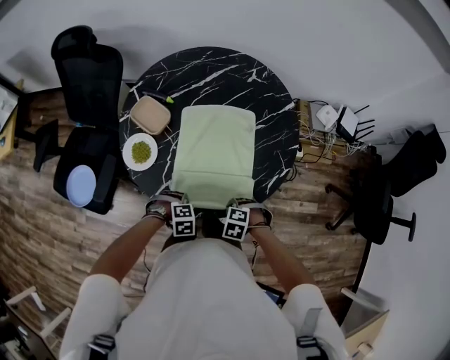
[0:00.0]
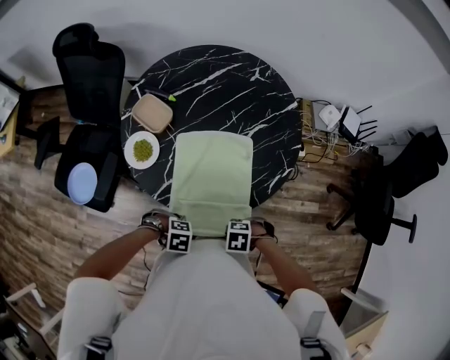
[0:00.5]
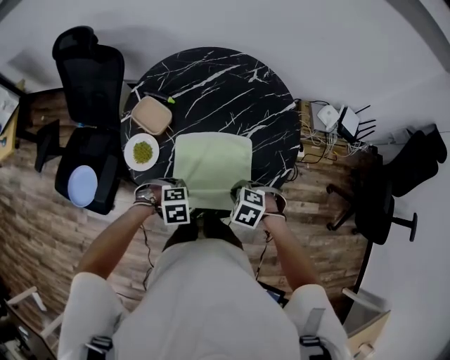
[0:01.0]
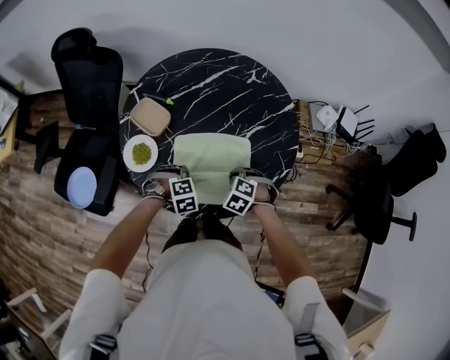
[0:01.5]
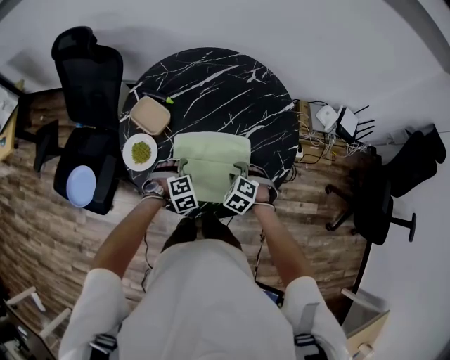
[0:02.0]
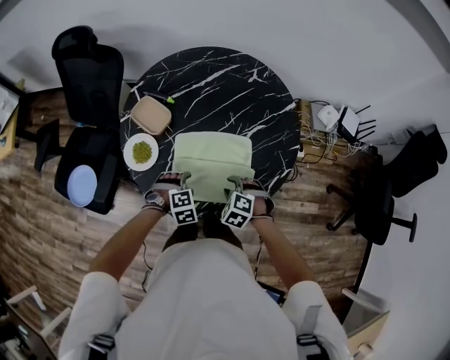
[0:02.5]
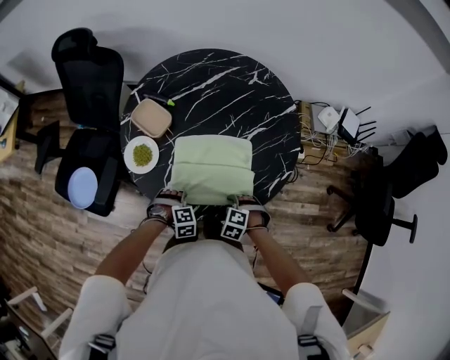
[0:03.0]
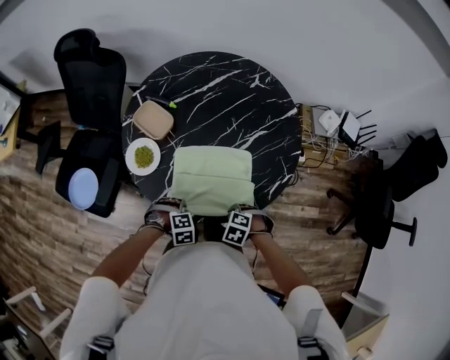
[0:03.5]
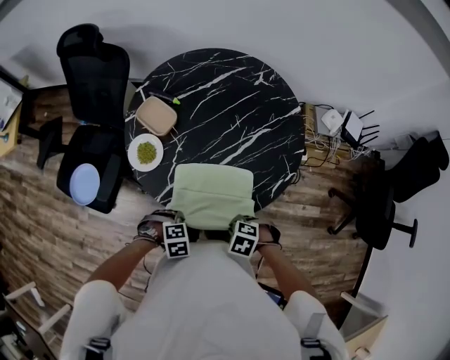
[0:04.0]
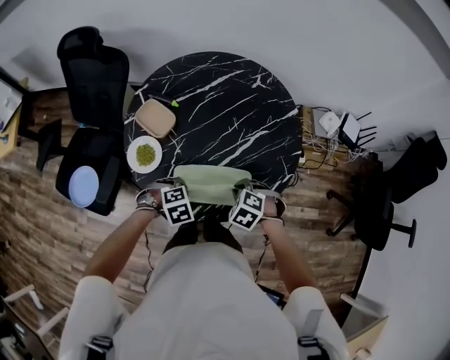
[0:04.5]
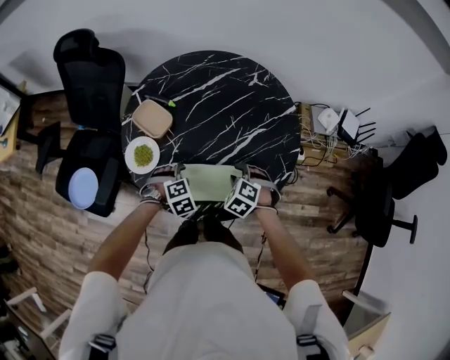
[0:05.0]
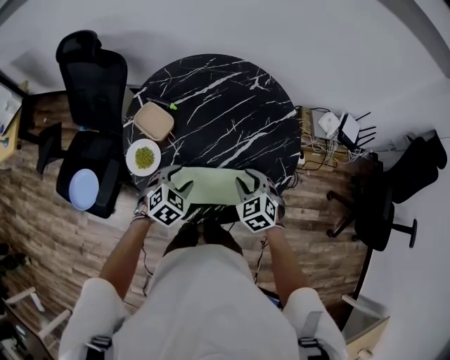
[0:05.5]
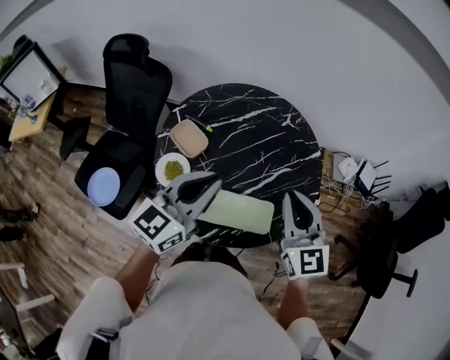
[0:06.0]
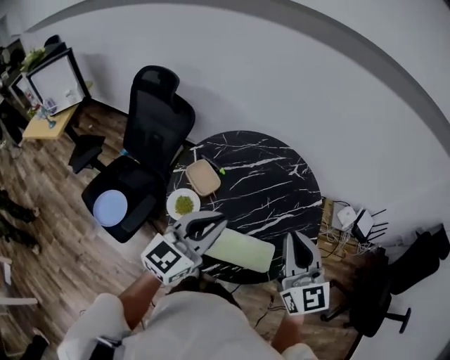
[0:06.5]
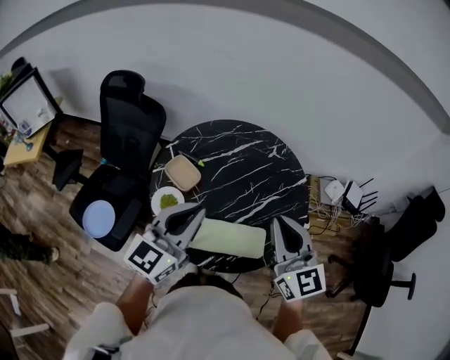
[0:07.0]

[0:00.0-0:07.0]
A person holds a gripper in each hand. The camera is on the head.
0:00.0 to 0:02.0: The left gripper shifts by roughly 15 cm, rotates approximately 20 degrees, and opens its fingers. The right gripper shifts by about 15 cm, and rotates roughly 20 degrees.
0:02.0 to 0:03.5: The left gripper shifts by approximately 15 cm, and closes its fingers. The right gripper ends up approximately 15 cm from where it was, and turns by approximately 20 degrees.
0:03.5 to 0:05.0: The left gripper changes place by approximately 15 cm, and opens up. The right gripper shifts by approximately 15 cm, and changes its angle by roughly 30 degrees.
0:05.0 to 0:07.0: The grippers both shift upward by approximately 35 cm. The left gripper angles its fingers upward, by some 70 degrees, and closes. Meanwhile the right gripper points its fingers about 60 degrees further upward, and closes up.

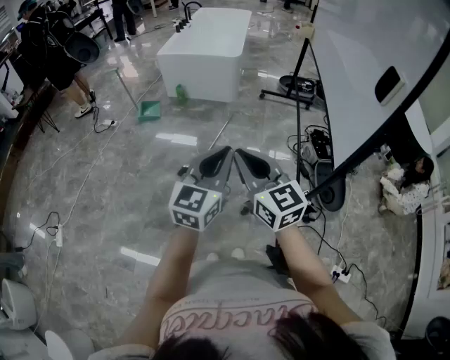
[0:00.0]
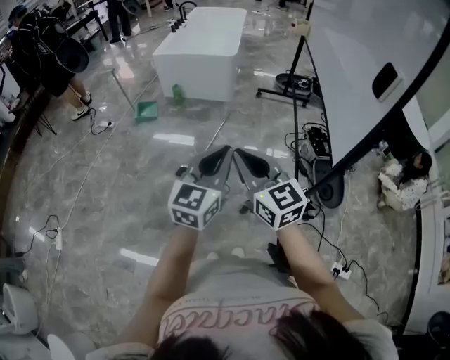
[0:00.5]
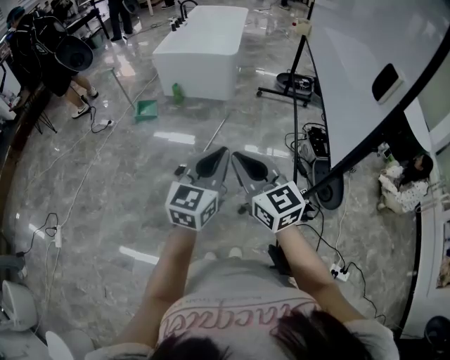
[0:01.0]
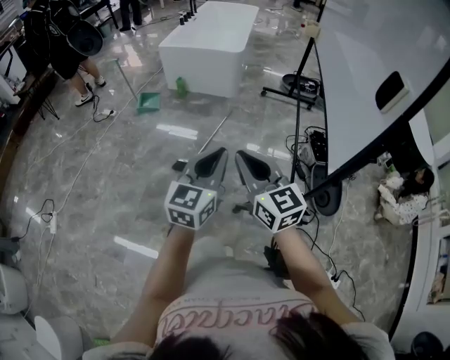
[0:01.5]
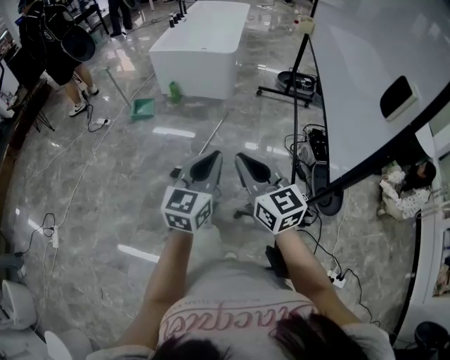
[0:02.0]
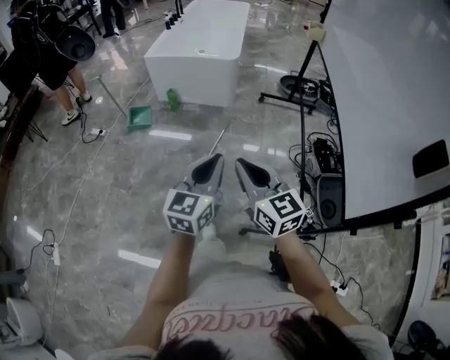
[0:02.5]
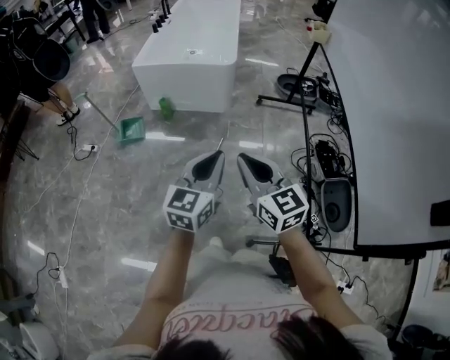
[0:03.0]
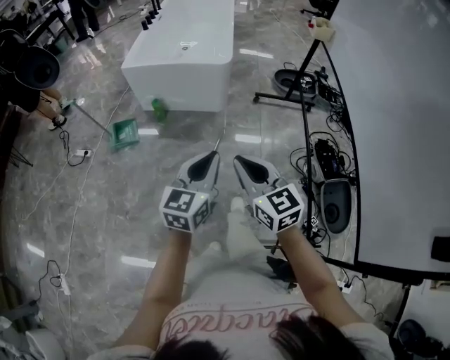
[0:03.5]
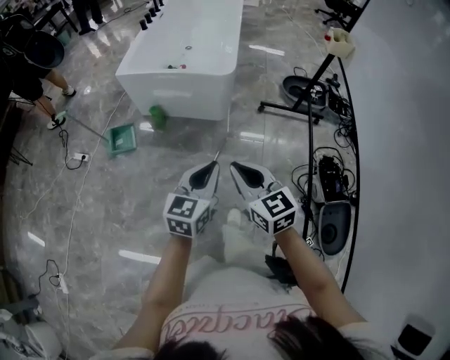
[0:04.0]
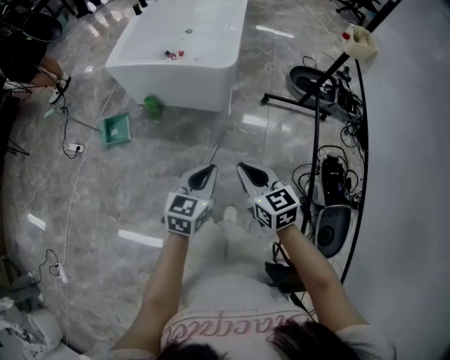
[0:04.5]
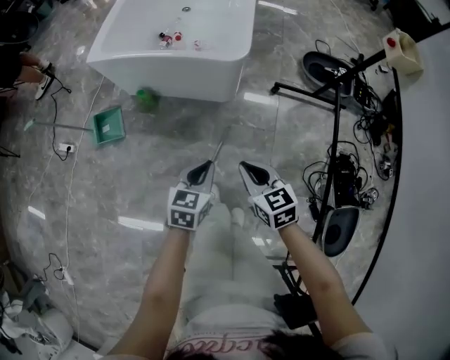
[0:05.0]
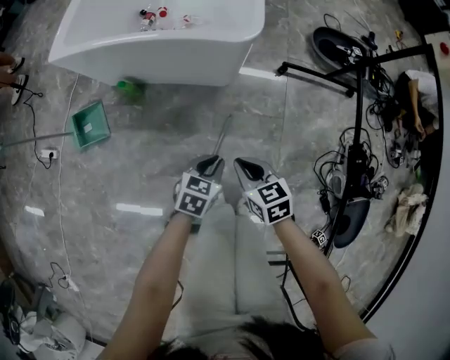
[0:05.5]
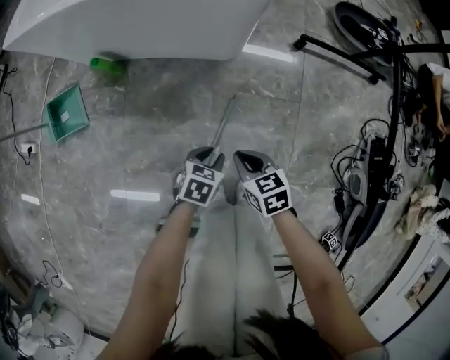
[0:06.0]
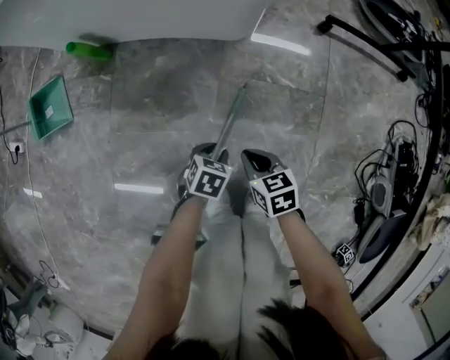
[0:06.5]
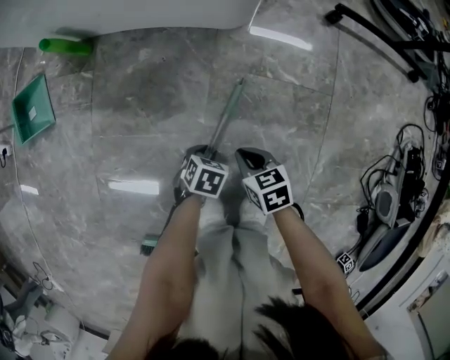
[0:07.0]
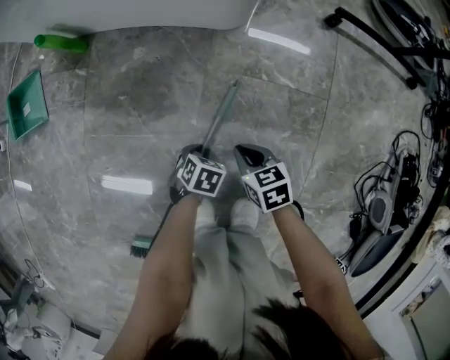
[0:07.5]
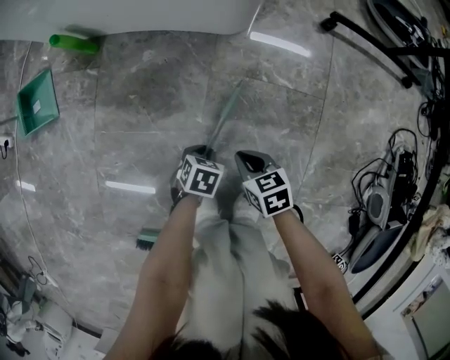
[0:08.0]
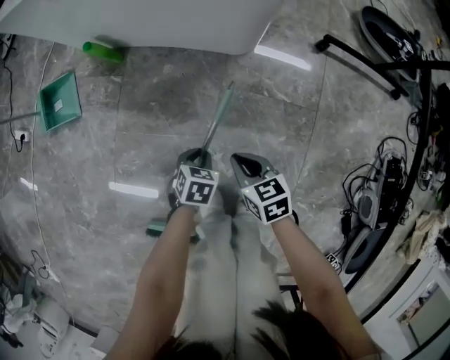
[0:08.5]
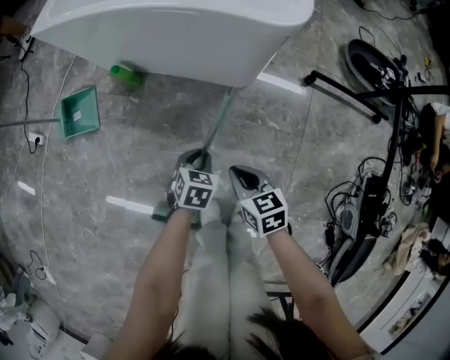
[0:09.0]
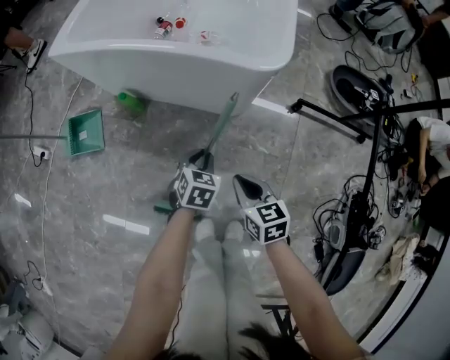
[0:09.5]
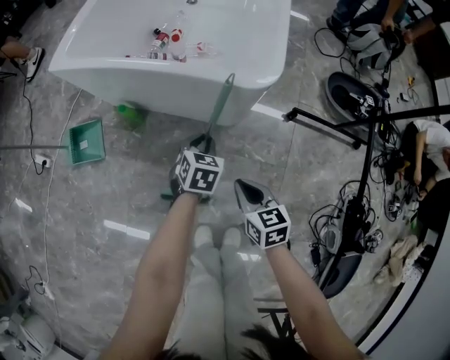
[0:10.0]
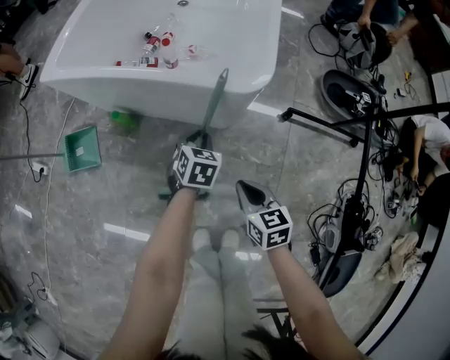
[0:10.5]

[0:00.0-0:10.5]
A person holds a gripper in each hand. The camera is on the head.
0:00.0 to 0:02.0: The right gripper shifts by some 5 cm. Meanwhile the left gripper moves forward, roughly 5 cm.
0:02.0 to 0:04.0: Both grippers are carried forward, approximately 40 cm.
0:04.0 to 0:06.5: Both grippers travel together downward, some 60 cm. The left gripper points its fingers some 50 degrees further downward, and opens; the right gripper angles its fingers downward, by about 30 degrees.
0:06.5 to 0:08.5: The left gripper reaches about 10 cm downward, then returns. Meanwhile the right gripper travels upward by some 5 cm.
0:08.5 to 0:10.5: The left gripper is displaced forward and upward by approximately 35 cm; the right gripper shifts some 20 cm upward and forward.

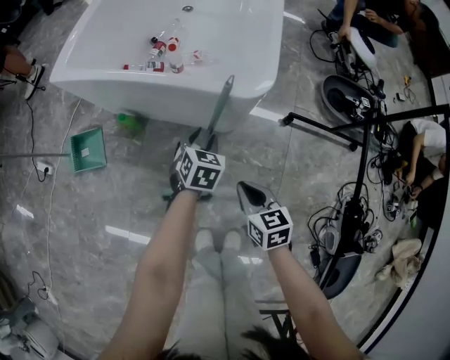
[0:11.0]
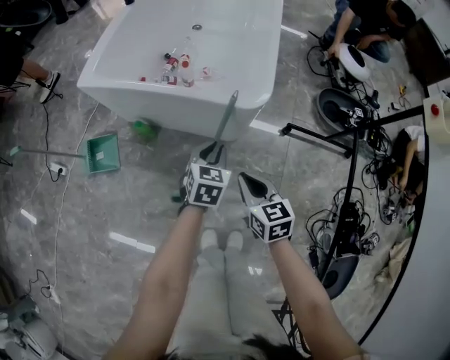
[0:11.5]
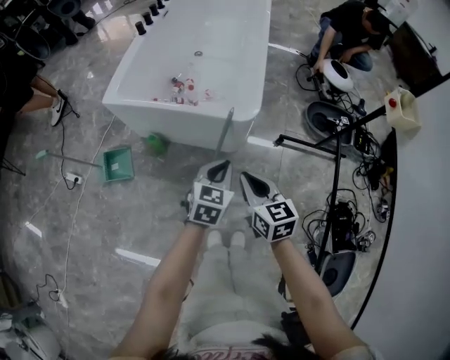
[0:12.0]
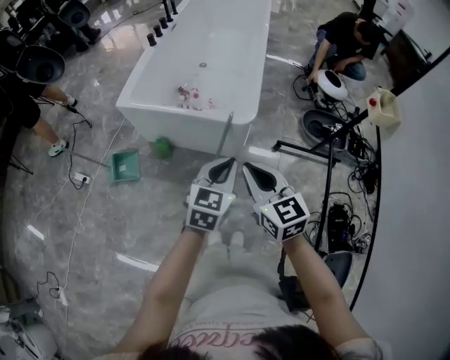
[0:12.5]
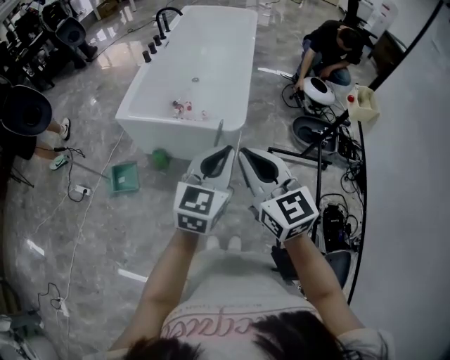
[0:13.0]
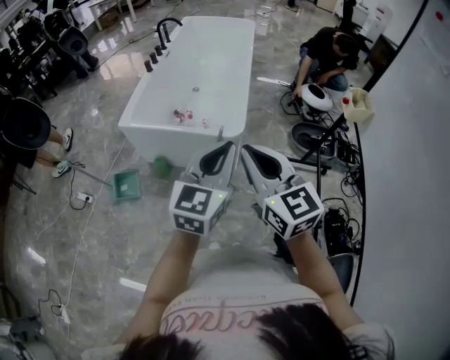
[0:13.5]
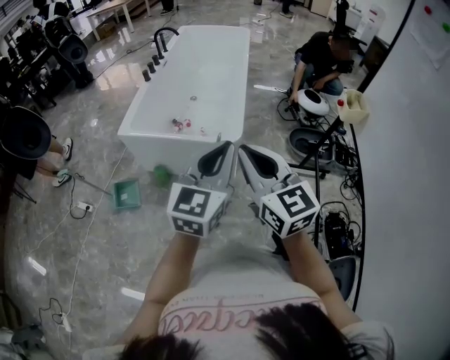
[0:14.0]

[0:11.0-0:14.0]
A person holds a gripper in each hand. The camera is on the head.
0:11.0 to 0:12.5: The right gripper moves upward, roughly 35 cm, and swivels some 30 degrees. The left gripper heads upward and backward, covering some 40 cm, changes its angle by about 30 degrees, and closes up.
0:12.5 to 0:14.0: The two grippers go approximately 15 cm upward. The left gripper rotates some 20 degrees.

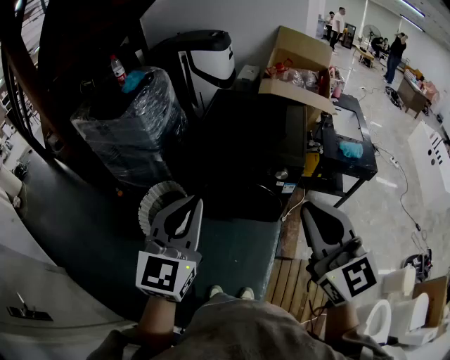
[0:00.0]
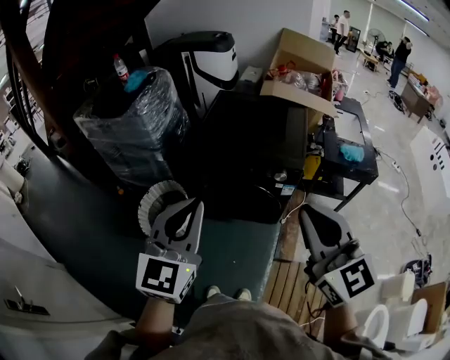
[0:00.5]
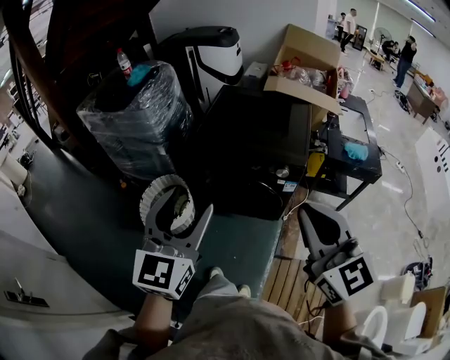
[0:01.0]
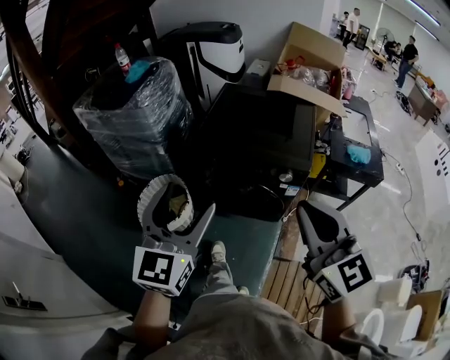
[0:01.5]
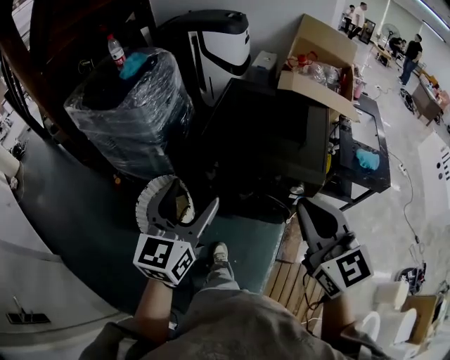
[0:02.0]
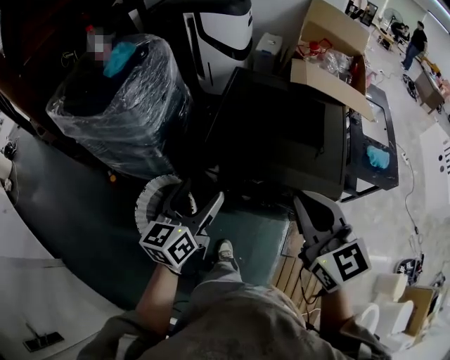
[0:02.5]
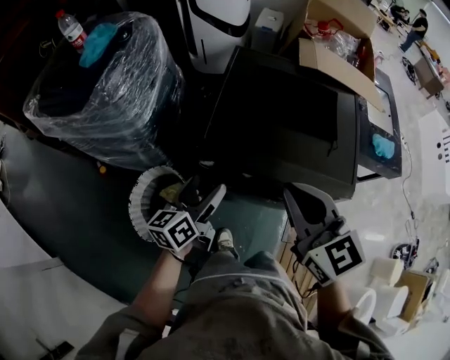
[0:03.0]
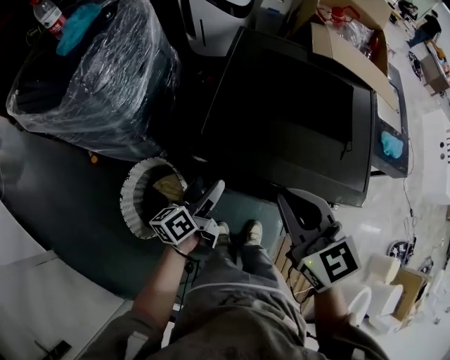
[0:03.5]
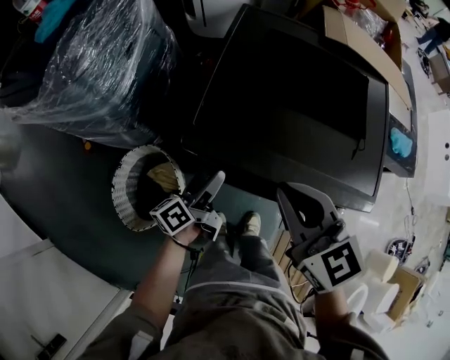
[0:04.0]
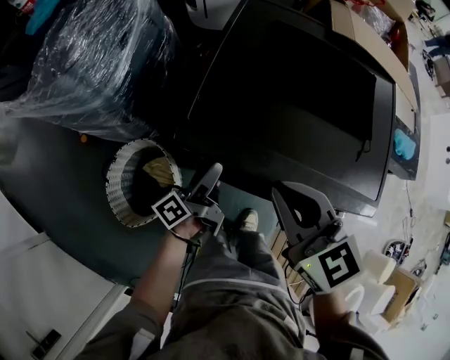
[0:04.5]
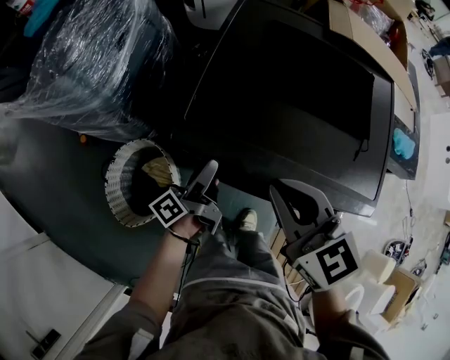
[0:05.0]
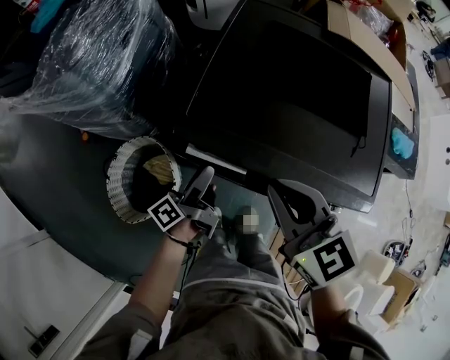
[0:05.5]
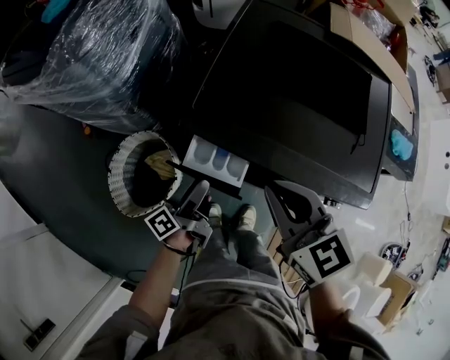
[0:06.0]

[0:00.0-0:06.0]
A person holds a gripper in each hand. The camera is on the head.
0:00.0 to 0:02.0: The left gripper moves forward and downward, about 15 cm, and opens its fingers; the right gripper heads forward, covering some 15 cm.
0:02.0 to 0:04.0: The right gripper shifts approximately 35 cm forward, downward and to the left; the left gripper is displaced downward and forward by approximately 40 cm, and twists some 60 degrees counterclockwise, seen from behind.
0:04.0 to 0:06.0: The left gripper moves backward, approximately 5 cm.
